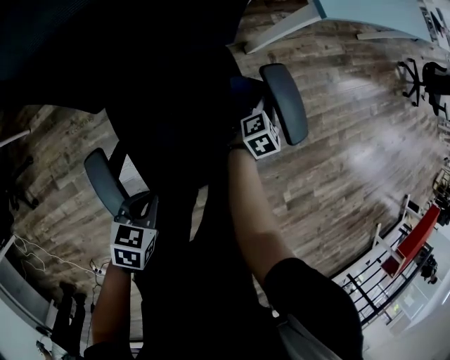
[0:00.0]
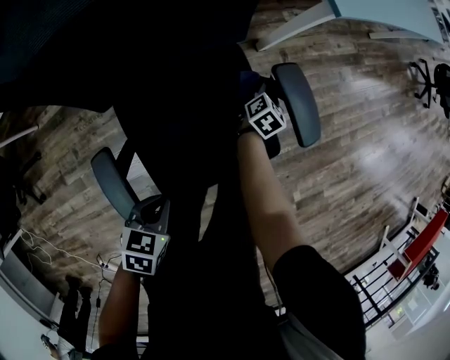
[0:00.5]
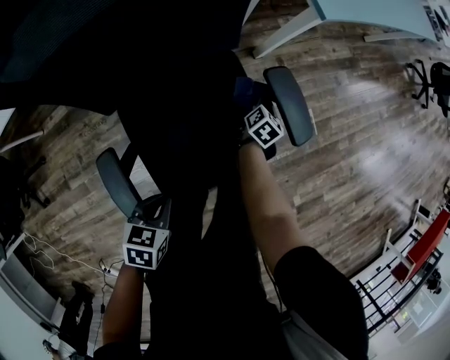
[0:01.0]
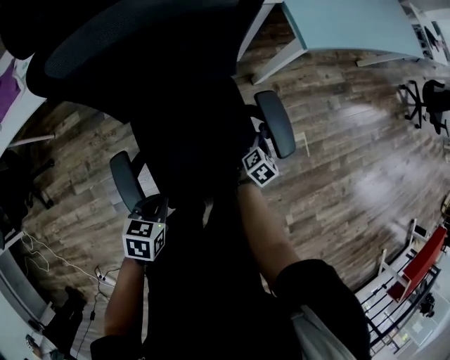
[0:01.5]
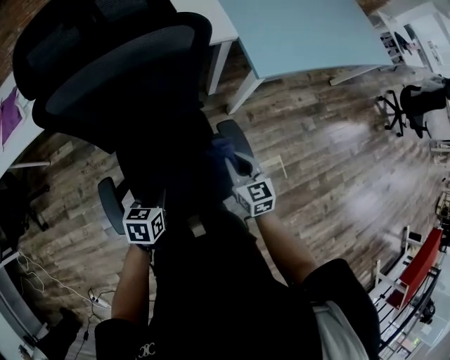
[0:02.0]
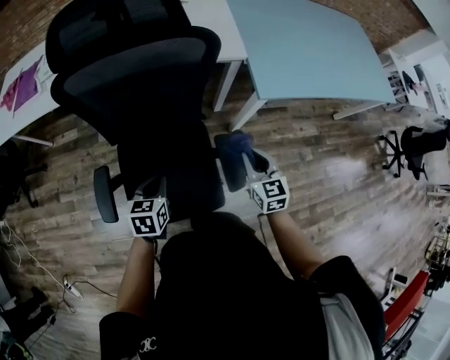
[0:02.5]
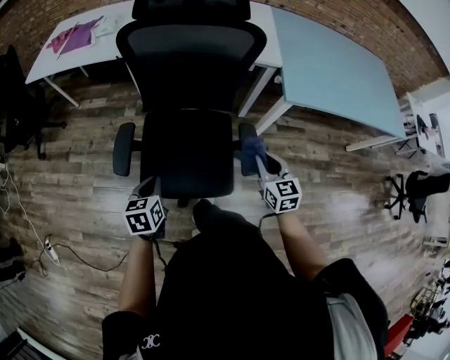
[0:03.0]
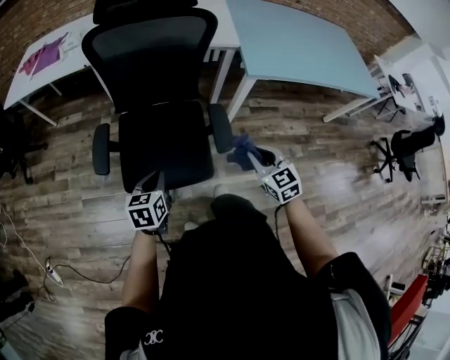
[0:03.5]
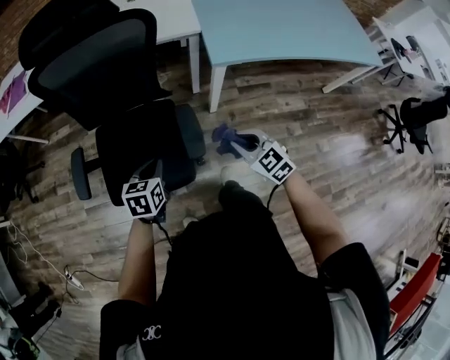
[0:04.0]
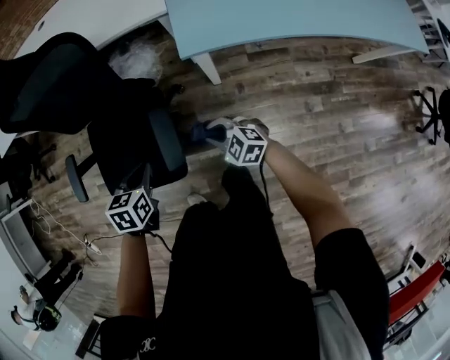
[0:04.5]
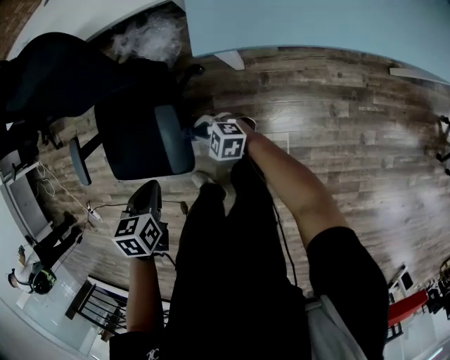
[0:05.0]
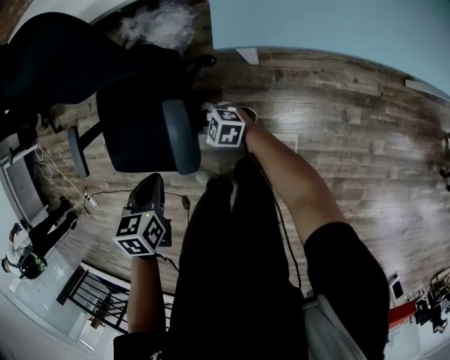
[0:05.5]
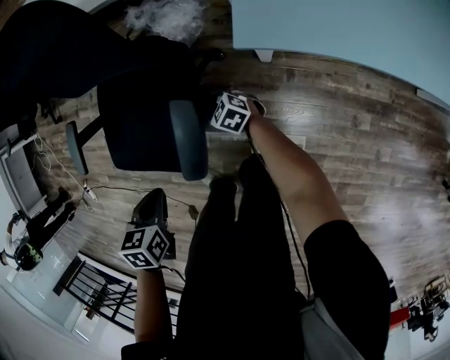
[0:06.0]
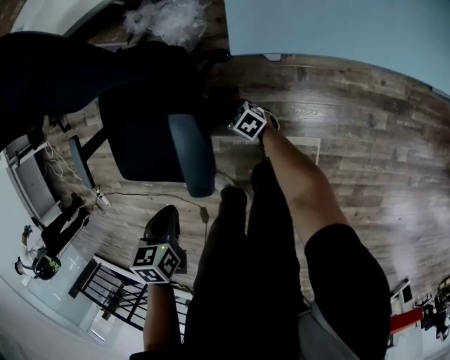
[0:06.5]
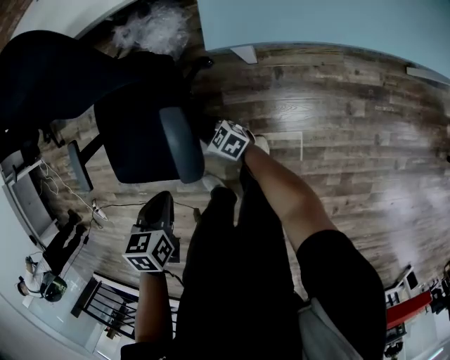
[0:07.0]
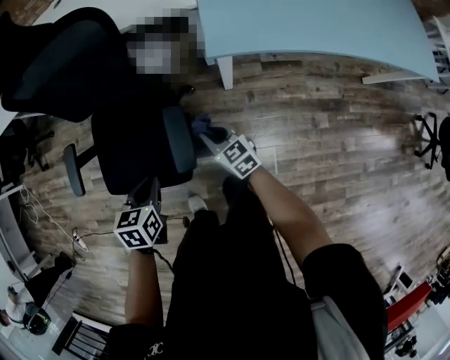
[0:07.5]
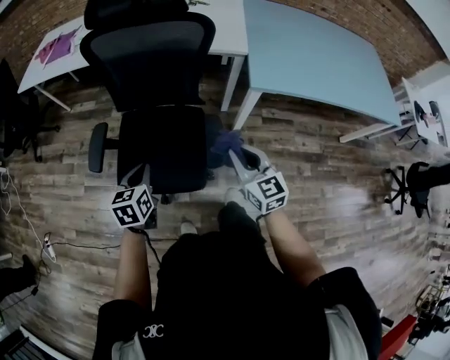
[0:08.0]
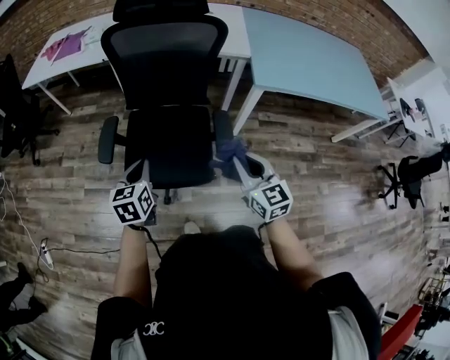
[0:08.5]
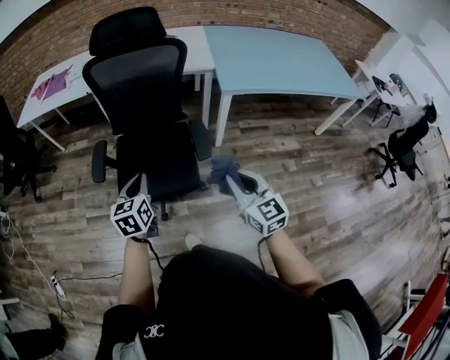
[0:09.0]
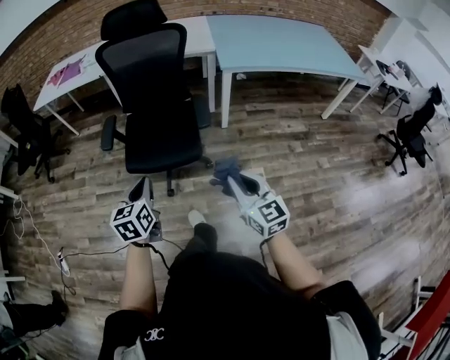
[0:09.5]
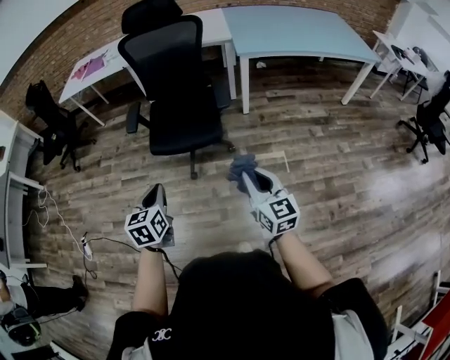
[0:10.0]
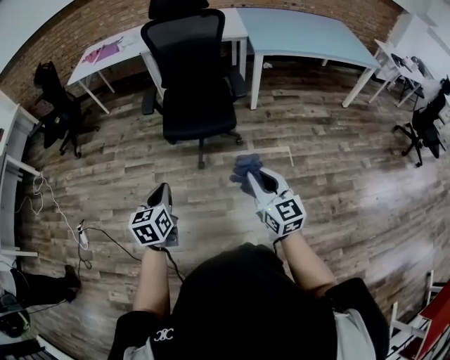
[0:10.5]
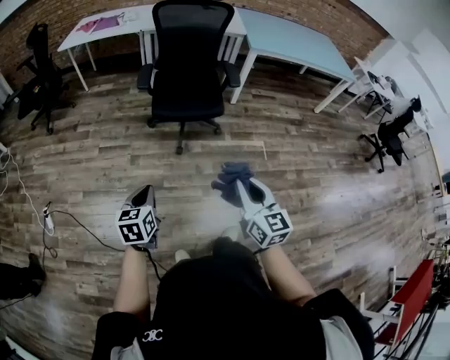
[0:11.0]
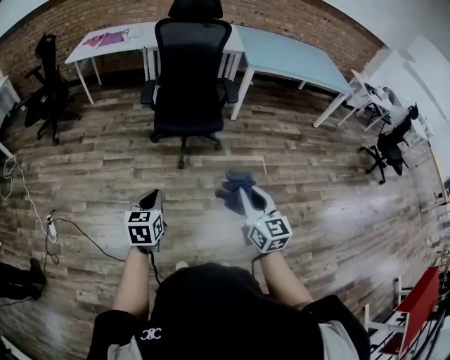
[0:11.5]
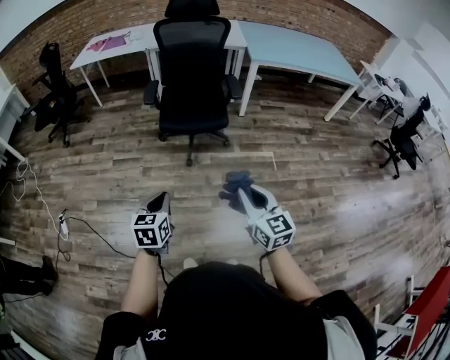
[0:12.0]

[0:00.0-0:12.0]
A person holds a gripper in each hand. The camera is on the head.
0:00.0 to 0:02.0: The left gripper ends up some 15 cm from where it was, and rotates approximately 20 degrees; the right gripper heads upward, covering approximately 20 cm, and rotates about 70 degrees.
0:02.0 to 0:04.0: The left gripper shifts by approximately 20 cm, while the right gripper moves approximately 20 cm, and swivels some 40 degrees.
0:04.0 to 0:06.0: The left gripper is displaced downward by about 5 cm, and swivels some 30 degrees; the right gripper heads downward, covering about 30 cm, and rotates approximately 40 degrees.
0:06.0 to 0:08.0: The left gripper ends up about 20 cm from where it was, and angles its fingers upward, by about 30 degrees. The right gripper moves upward, roughly 40 cm, and rotates approximately 50 degrees.
0:08.0 to 0:10.0: Both grippers are carried backward, some 40 cm.
0:10.0 to 0:12.0: Both grippers travel together backward and to the left, roughly 25 cm.

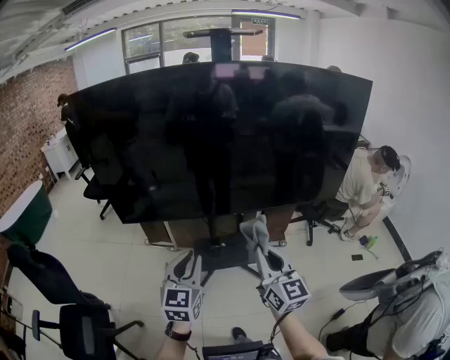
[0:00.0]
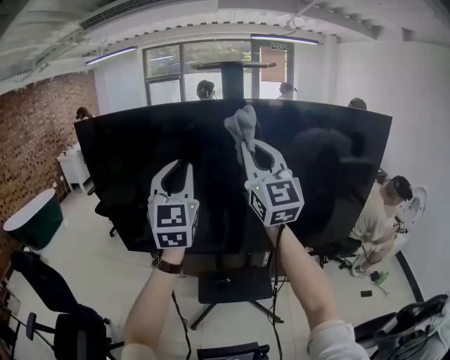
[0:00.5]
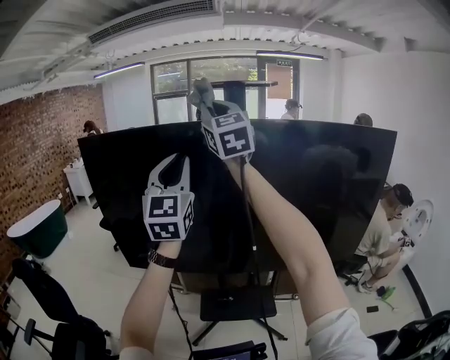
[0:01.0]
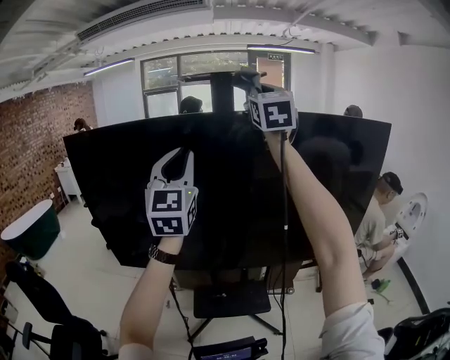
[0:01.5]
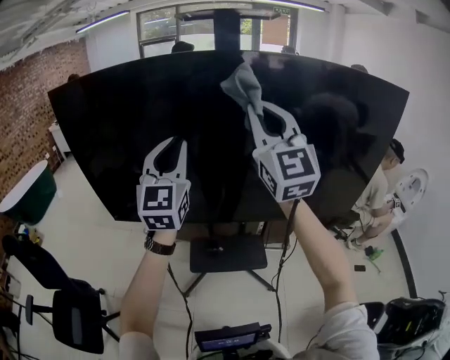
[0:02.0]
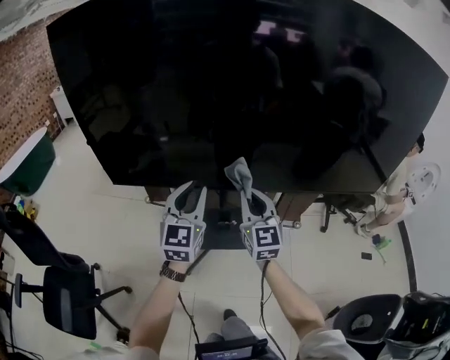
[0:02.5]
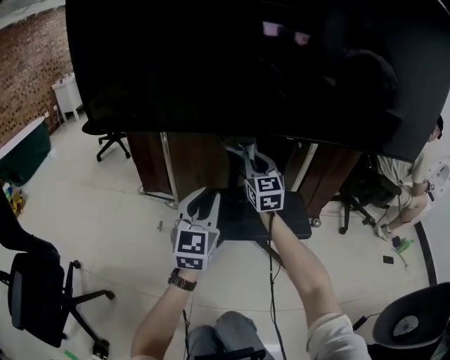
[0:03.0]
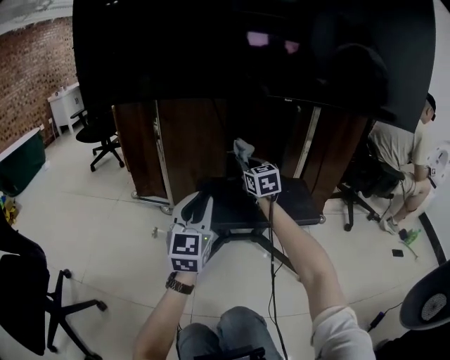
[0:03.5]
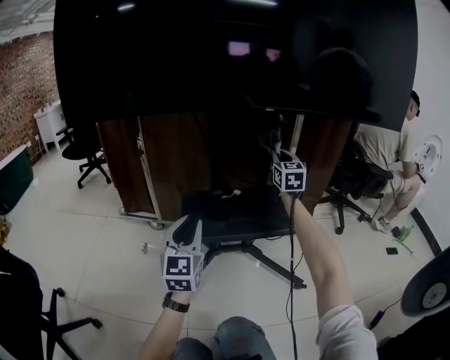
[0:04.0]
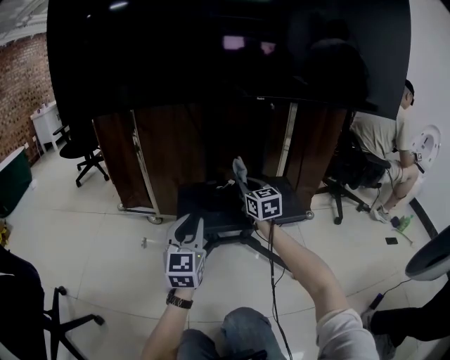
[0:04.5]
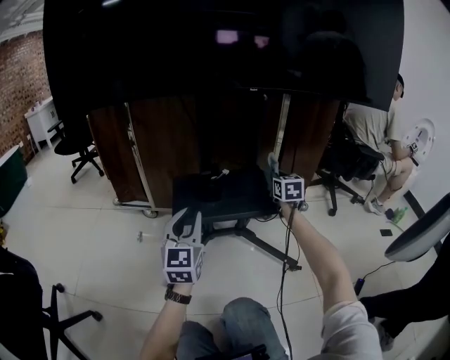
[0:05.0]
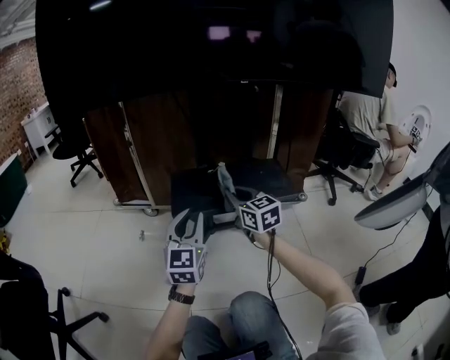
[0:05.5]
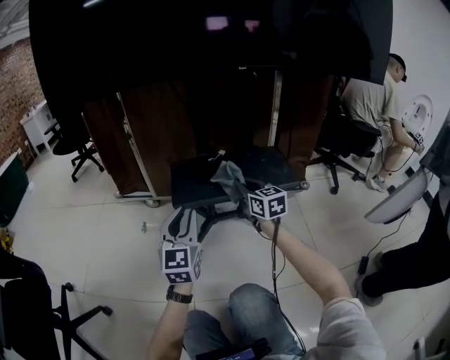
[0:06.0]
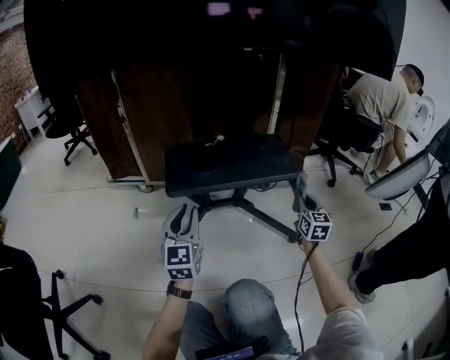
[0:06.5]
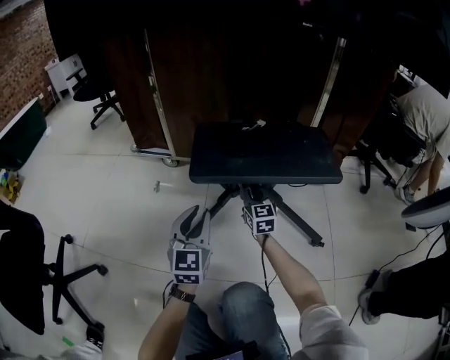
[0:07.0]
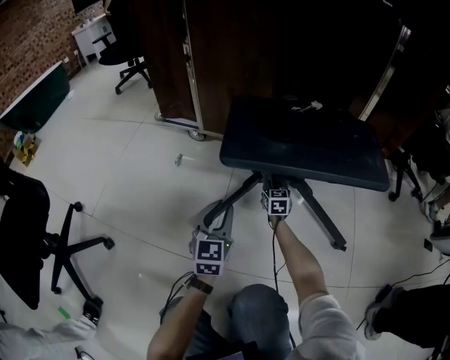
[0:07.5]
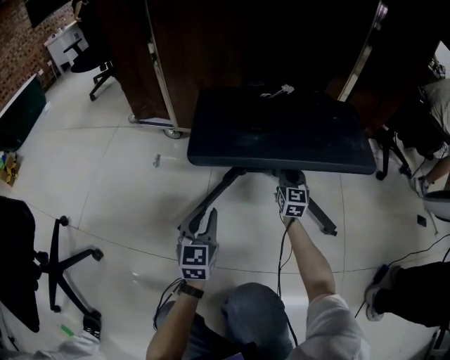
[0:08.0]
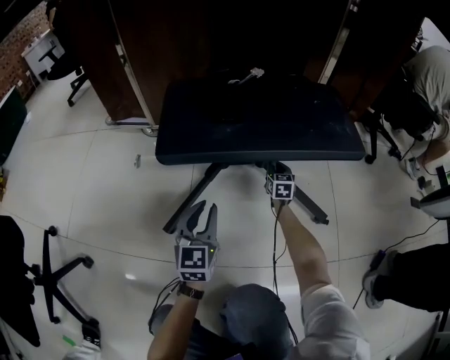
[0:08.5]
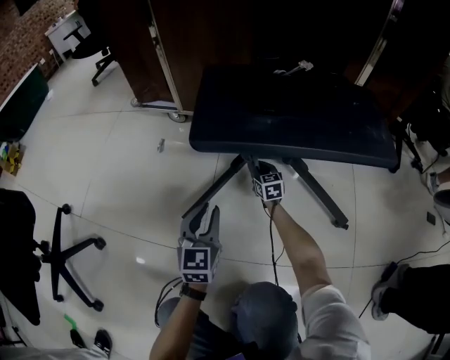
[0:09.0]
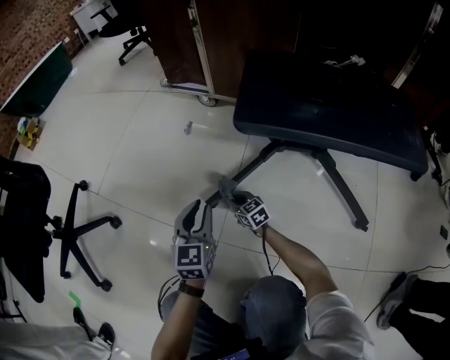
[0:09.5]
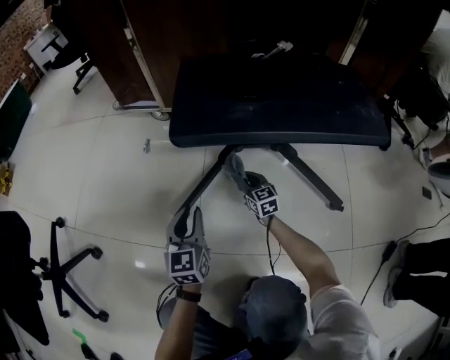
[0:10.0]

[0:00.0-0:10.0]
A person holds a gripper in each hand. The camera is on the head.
0:00.0 to 0:02.0: The two grippers go roughly 35 cm upward and forward. The right gripper rotates some 30 degrees; the left gripper turns by about 30 degrees.
0:02.0 to 0:04.0: Both grippers move downward, some 90 cm. The right gripper changes its angle by some 30 degrees.
0:04.0 to 0:06.0: The left gripper goes some 10 cm backward and downward, while the right gripper goes some 25 cm downward, backward and to the left, and swivels roughly 30 degrees.
0:06.0 to 0:08.0: The right gripper is displaced downward and forward by some 35 cm. The left gripper goes roughly 30 cm downward, and rotates roughly 20 degrees.
0:08.0 to 0:10.0: The left gripper heads downward, covering approximately 5 cm, while the right gripper shifts approximately 20 cm downward, and swivels some 30 degrees.

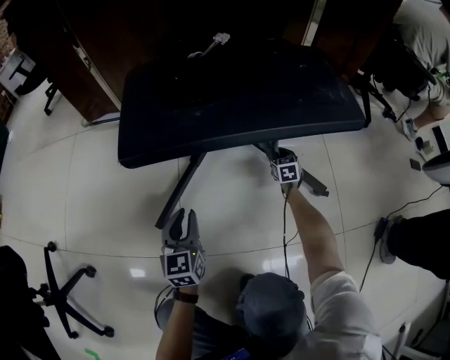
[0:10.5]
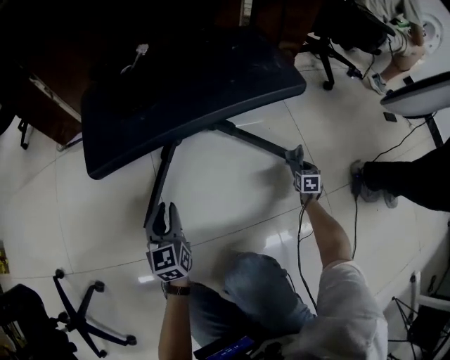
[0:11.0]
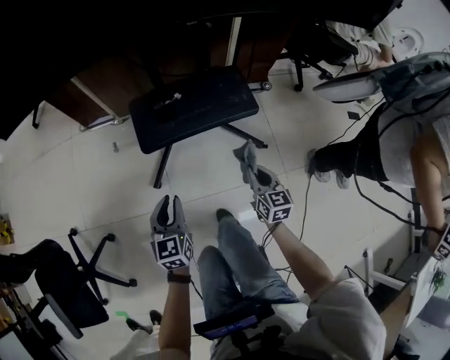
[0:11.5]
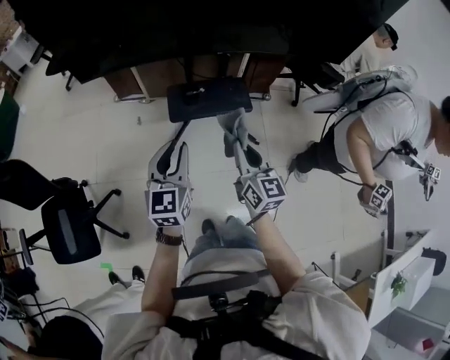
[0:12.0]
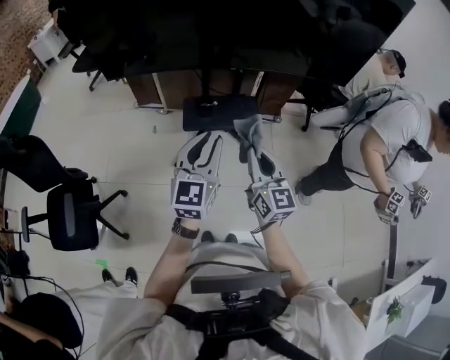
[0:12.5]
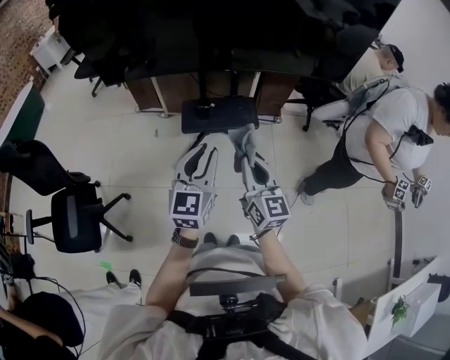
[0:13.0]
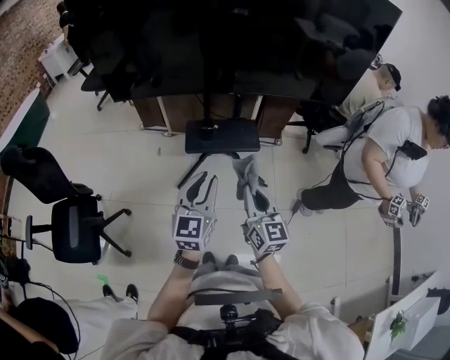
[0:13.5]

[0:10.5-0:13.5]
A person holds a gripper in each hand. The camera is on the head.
0:10.5 to 0:12.0: The right gripper heads upward and backward, covering some 1 m, and tips its fingers upward by about 40 degrees. The left gripper goes approximately 90 cm upward.
0:12.0 to 0:13.5: The right gripper goes roughly 15 cm backward and to the right. Meanwhile the left gripper travels backward, to the right and upward by approximately 15 cm.

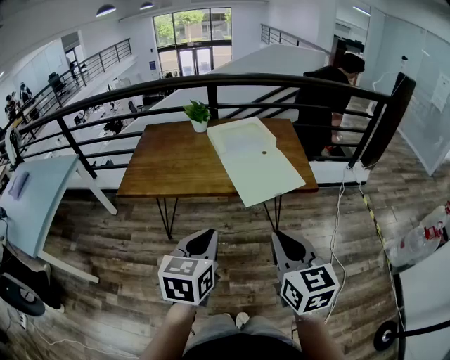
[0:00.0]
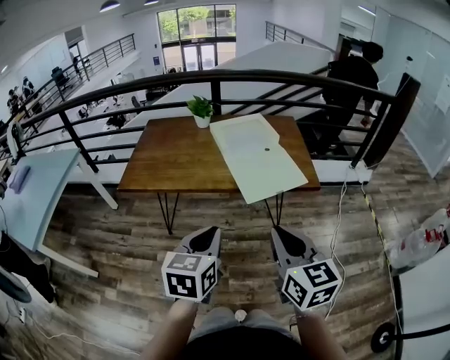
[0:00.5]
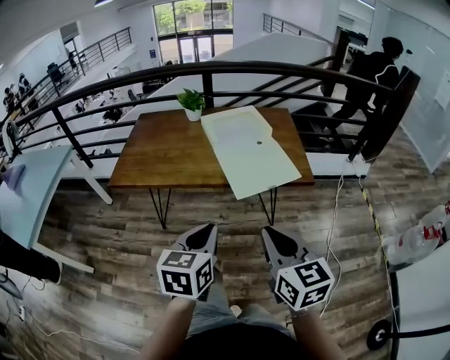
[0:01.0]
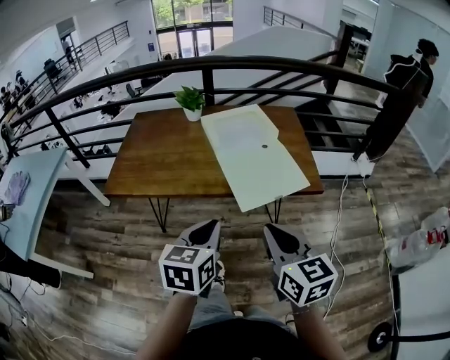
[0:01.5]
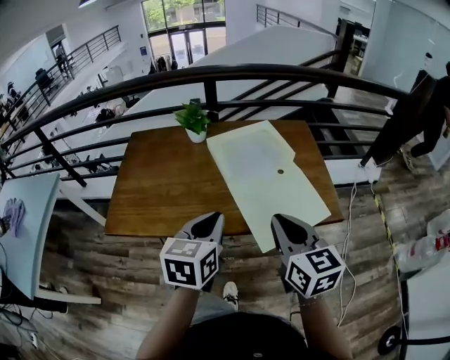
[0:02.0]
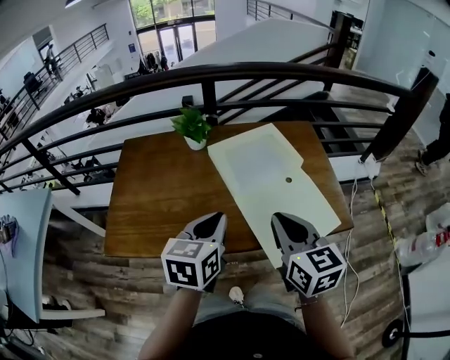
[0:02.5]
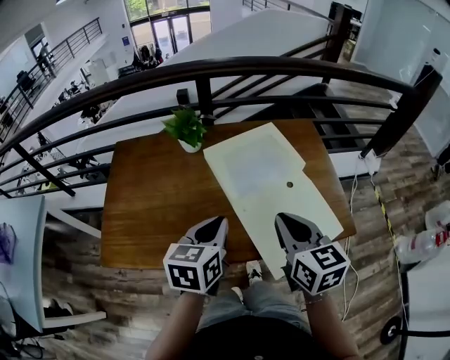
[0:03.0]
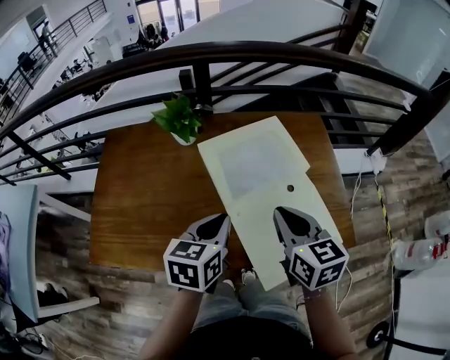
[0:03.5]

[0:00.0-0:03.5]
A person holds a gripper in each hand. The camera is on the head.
0:00.0 to 0:02.0: The grippers both shift forward by roughly 30 cm.
0:02.0 to 0:03.5: Both grippers travel together forward, roughly 20 cm.
